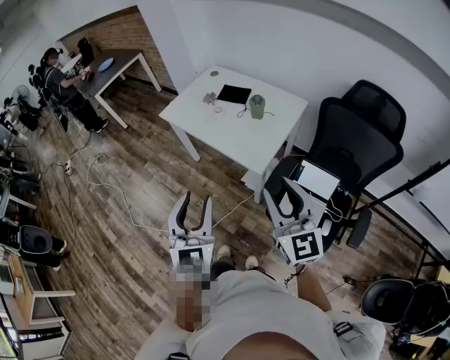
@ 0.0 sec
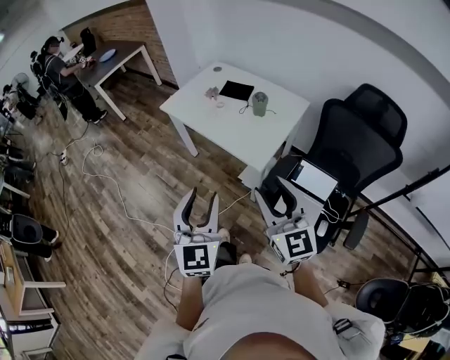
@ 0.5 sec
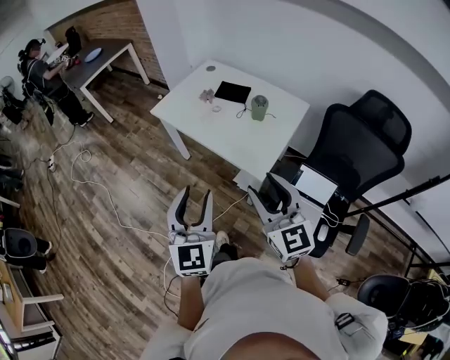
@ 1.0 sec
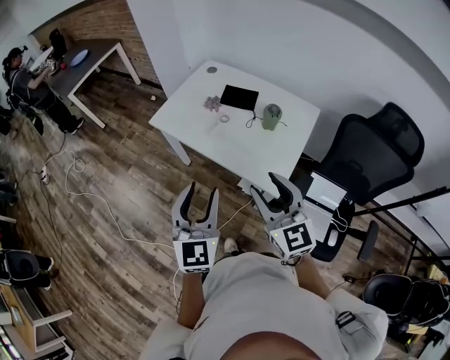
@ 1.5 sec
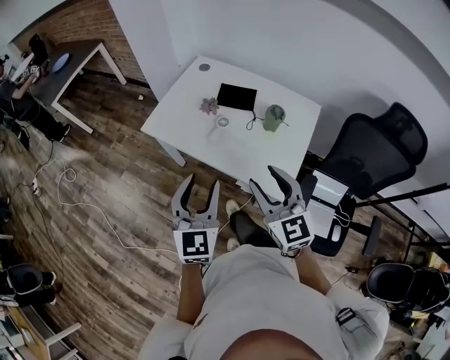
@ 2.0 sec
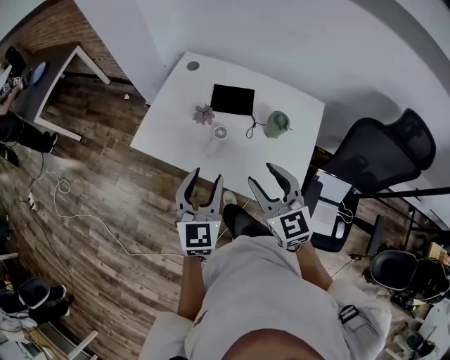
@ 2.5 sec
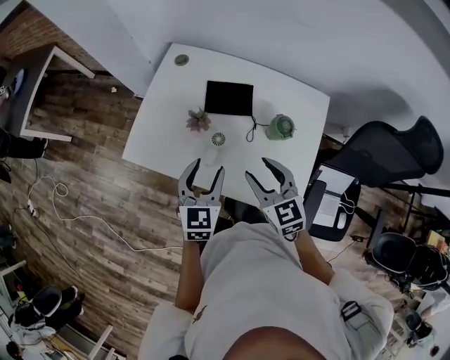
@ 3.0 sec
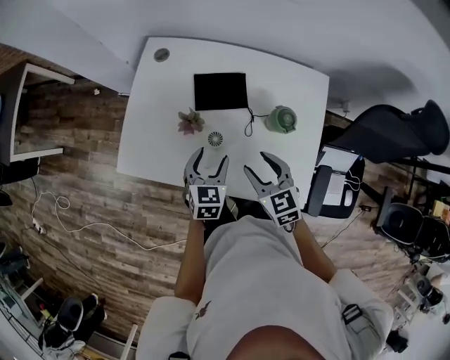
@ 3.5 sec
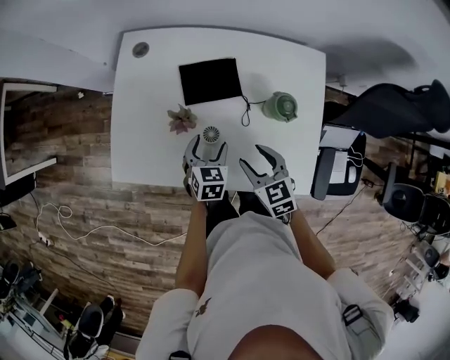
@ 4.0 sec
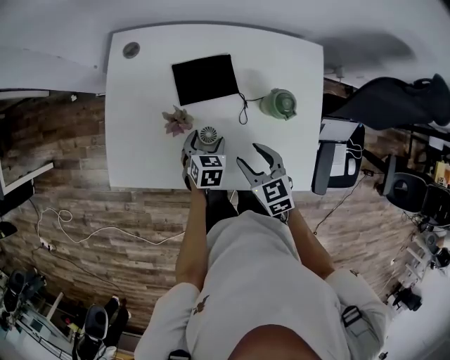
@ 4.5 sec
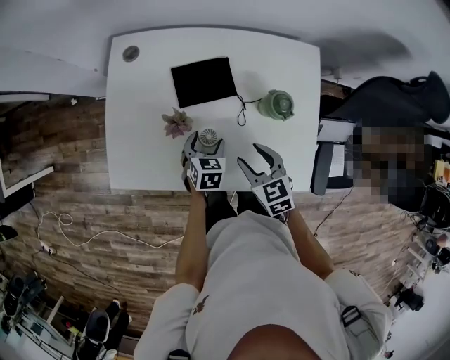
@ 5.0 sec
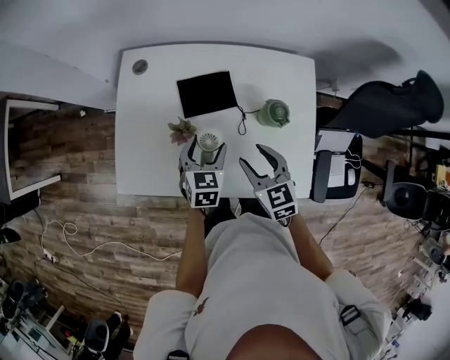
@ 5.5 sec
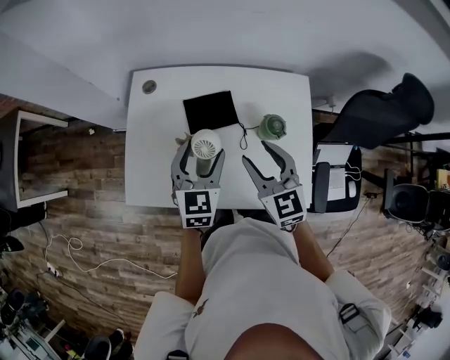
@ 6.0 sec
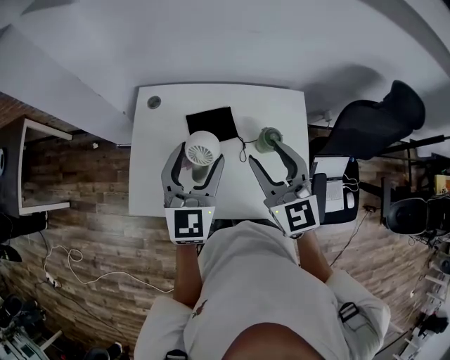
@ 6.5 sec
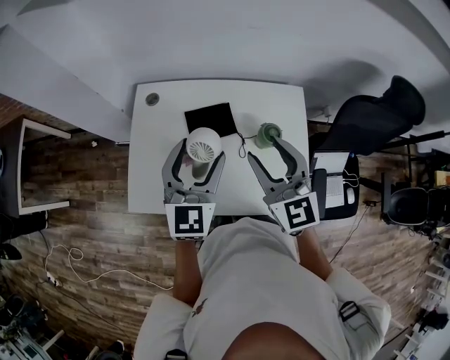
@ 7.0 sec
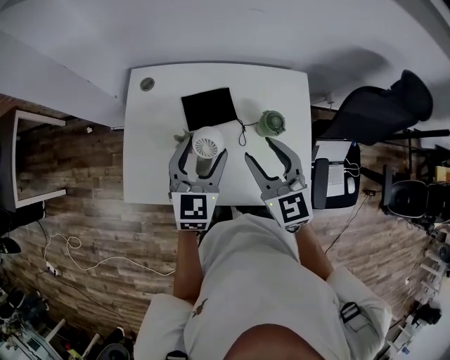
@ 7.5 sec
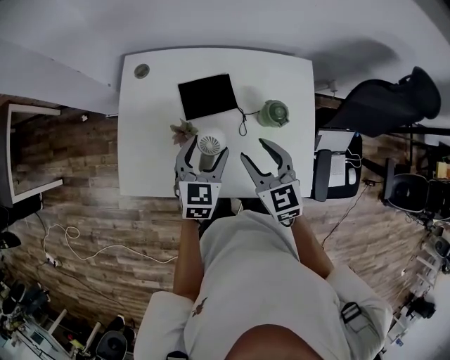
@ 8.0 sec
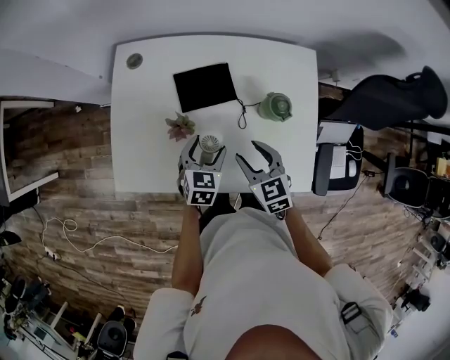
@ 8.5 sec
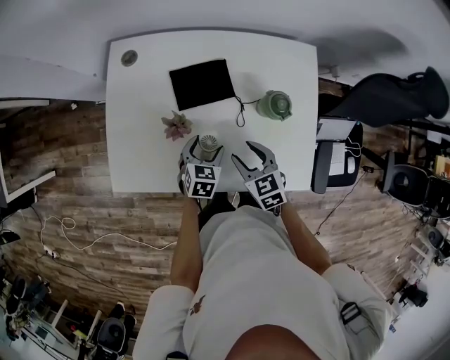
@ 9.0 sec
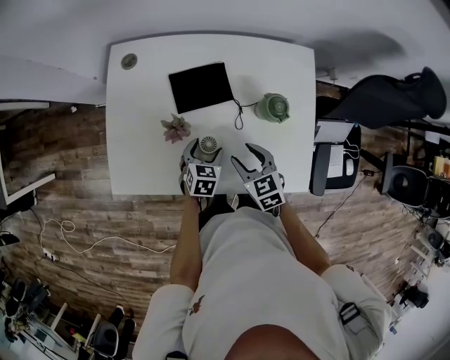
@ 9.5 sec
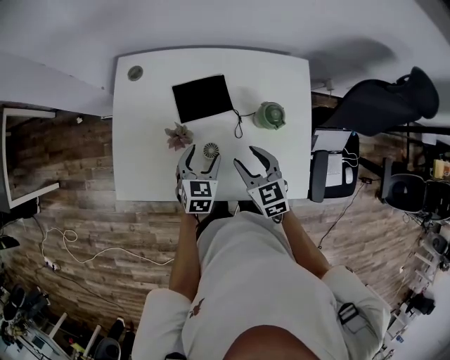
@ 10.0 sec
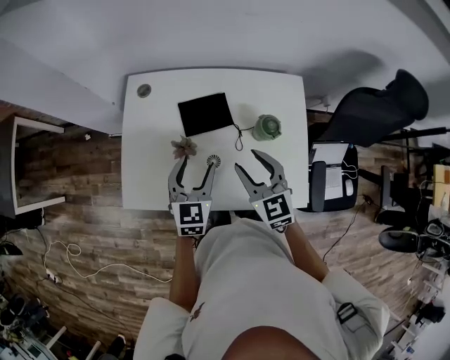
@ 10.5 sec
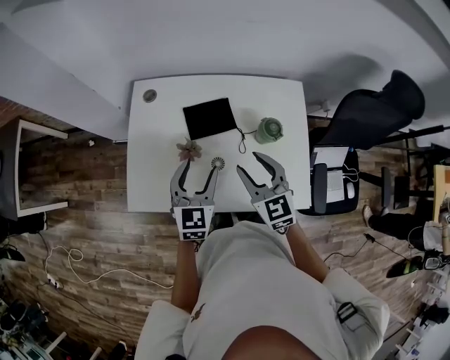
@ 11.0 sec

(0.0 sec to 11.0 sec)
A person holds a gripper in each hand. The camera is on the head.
0.0 sec - 2.0 sec: The left gripper goes some 30 cm forward, while the right gripper is displaced forward and to the left by approximately 35 cm.
2.0 sec - 3.5 sec: The two grippers go approximately 35 cm forward and downward. The left gripper tilts its fingers about 30 degrees downward, while the right gripper swivels some 30 degrees.
3.5 sec - 5.5 sec: The left gripper is displaced forward by about 5 cm, and goes downward and returns, about 15 cm each way.
5.5 sec - 7.5 sec: Both grippers travel together upward, about 15 cm. The left gripper swivels some 20 degrees.
7.5 sec - 9.0 sec: The grippers both shift downward by some 25 cm. The left gripper tilts its fingers roughly 30 degrees downward, while the right gripper rotates some 30 degrees.
9.0 sec - 11.0 sec: Both grippers travel together upward, about 20 cm. The left gripper turns by approximately 30 degrees. Meanwhile the right gripper turns by roughly 20 degrees.

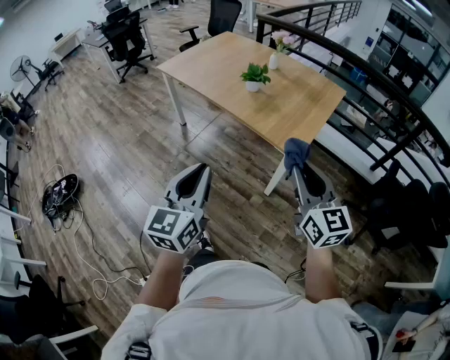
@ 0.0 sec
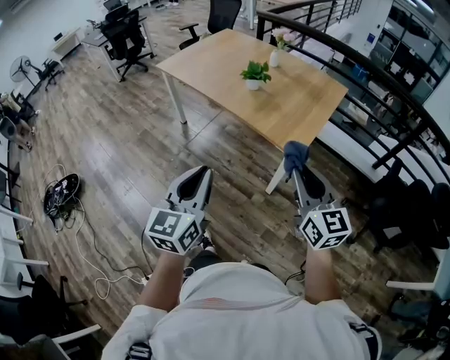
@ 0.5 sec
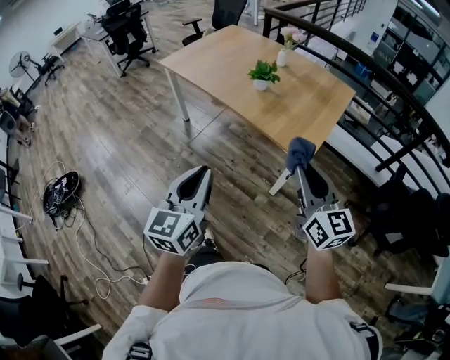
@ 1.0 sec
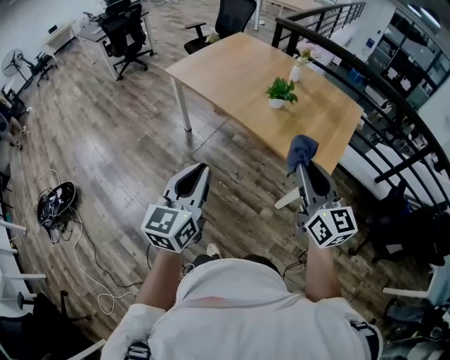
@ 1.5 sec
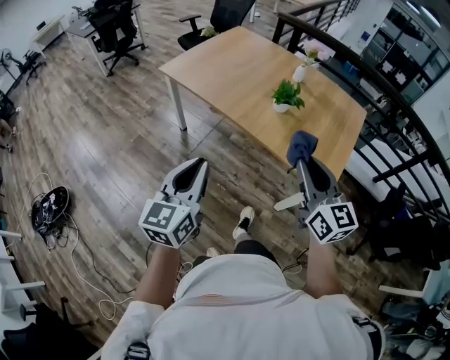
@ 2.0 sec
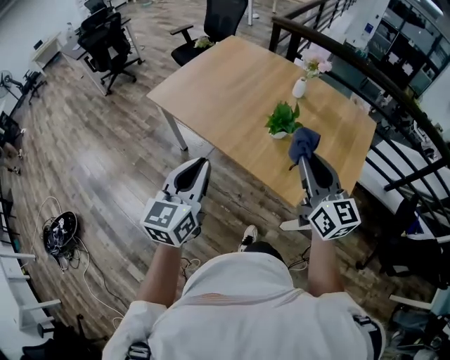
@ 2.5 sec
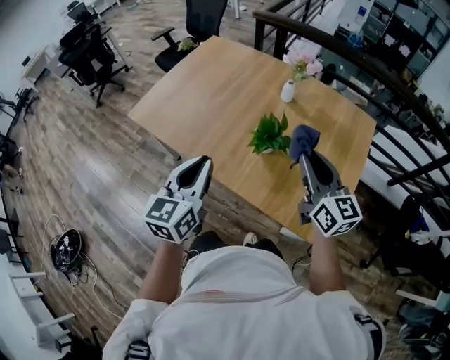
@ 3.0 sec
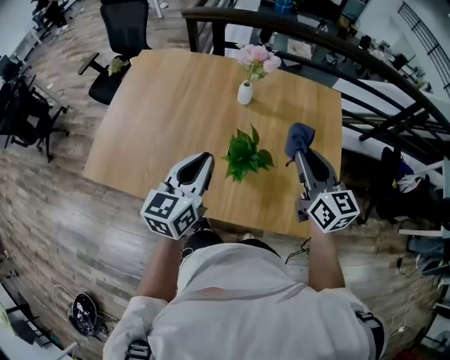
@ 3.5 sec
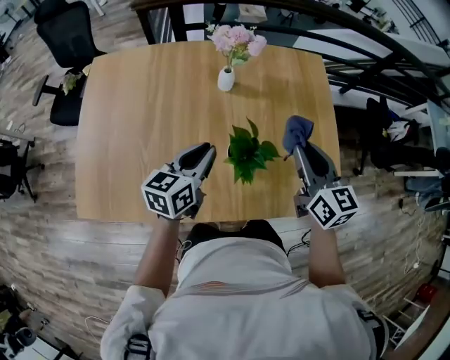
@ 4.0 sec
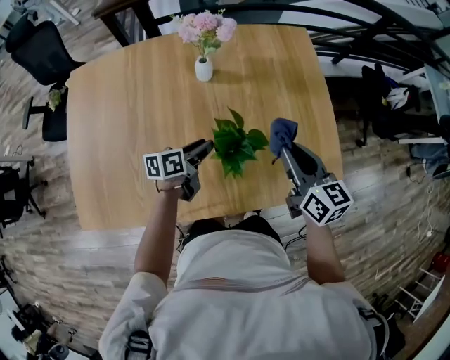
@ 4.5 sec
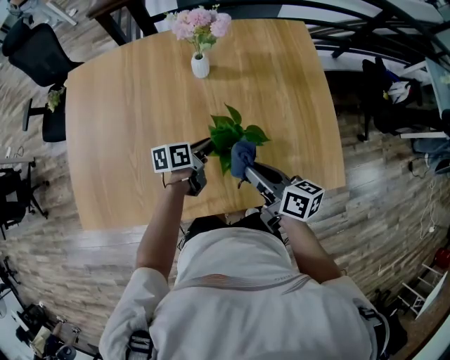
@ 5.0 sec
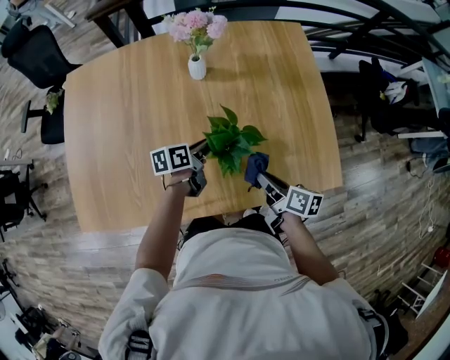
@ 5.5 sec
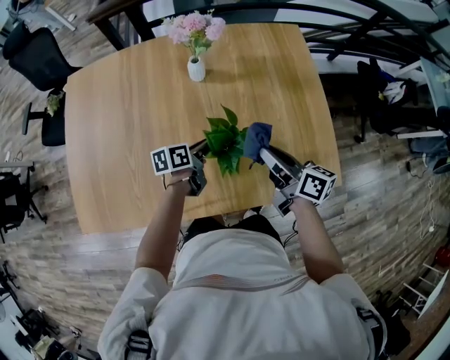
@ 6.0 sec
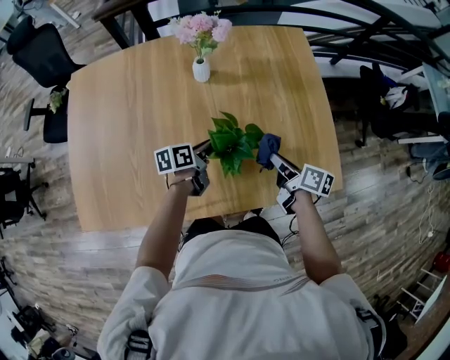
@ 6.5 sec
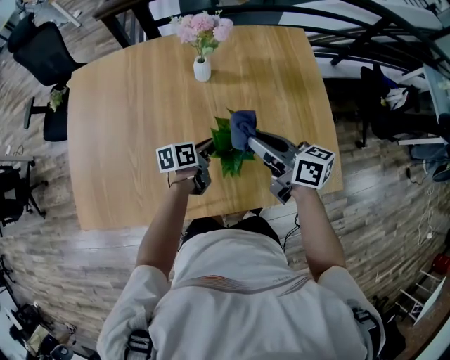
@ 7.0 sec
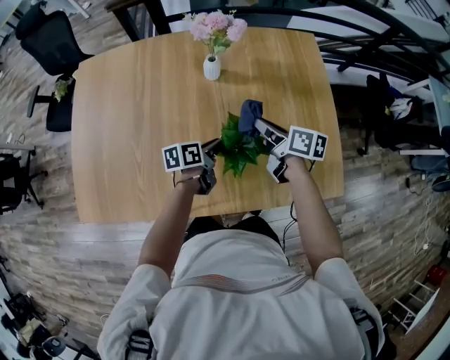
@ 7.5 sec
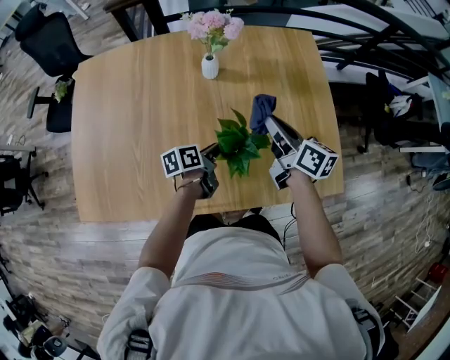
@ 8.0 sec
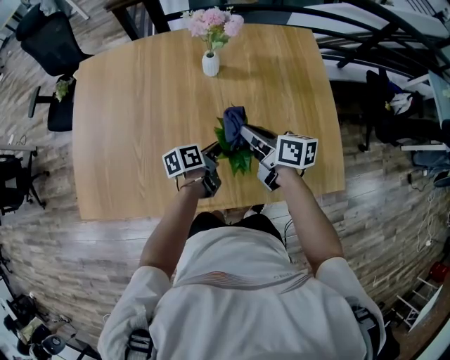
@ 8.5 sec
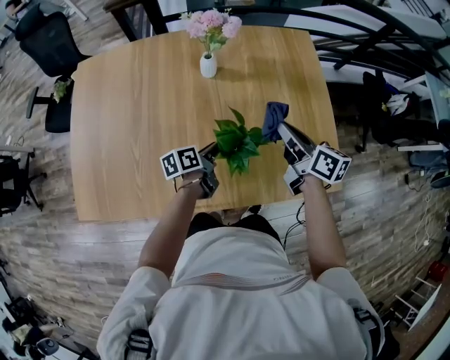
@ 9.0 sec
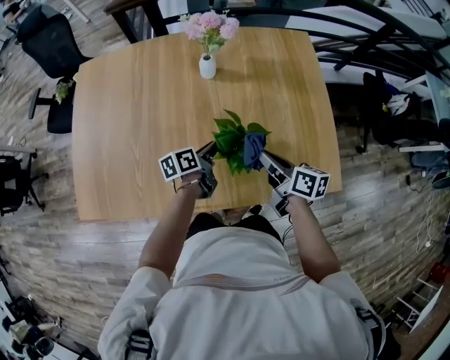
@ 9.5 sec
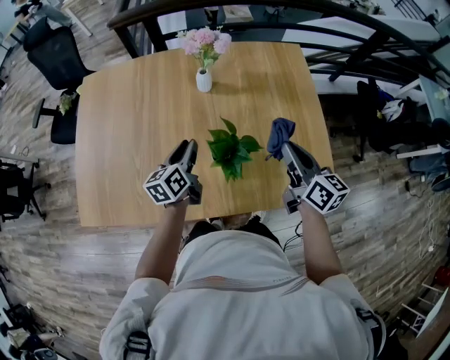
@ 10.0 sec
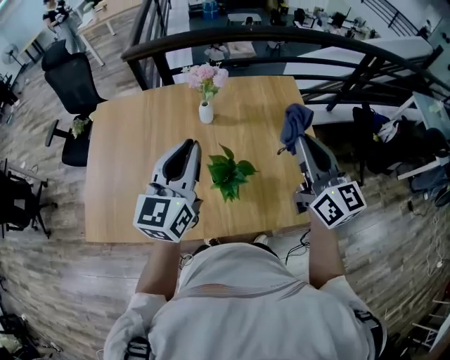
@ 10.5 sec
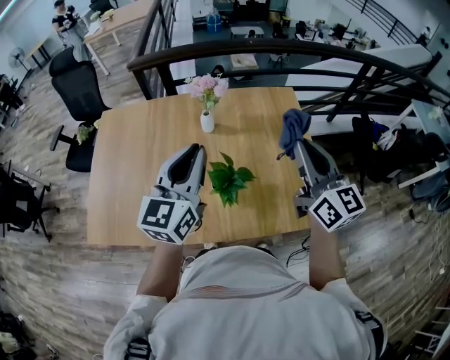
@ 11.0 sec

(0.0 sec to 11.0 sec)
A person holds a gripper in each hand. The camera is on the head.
0.0 sec - 2.0 sec: Both grippers move forward and to the left, some 30 cm.
2.0 sec - 3.5 sec: The two grippers travel together, about 50 cm. The left gripper rotates some 30 degrees. Meanwhile the right gripper rotates about 30 degrees.
3.5 sec - 5.5 sec: The two grippers go about 25 cm downward. The right gripper rolls clockwise, seen from behind, by roughly 50 degrees. The left gripper rotates roughly 60 degrees.
5.5 sec - 7.5 sec: The right gripper is displaced forward by some 15 cm.
7.5 sec - 9.0 sec: The right gripper moves upward and to the right, about 10 cm.
9.0 sec - 11.0 sec: The right gripper heads upward, covering approximately 25 cm, and turns by about 40 degrees, while the left gripper moves upward, roughly 40 cm, and twists roughly 60 degrees clockwise, seen from behind.

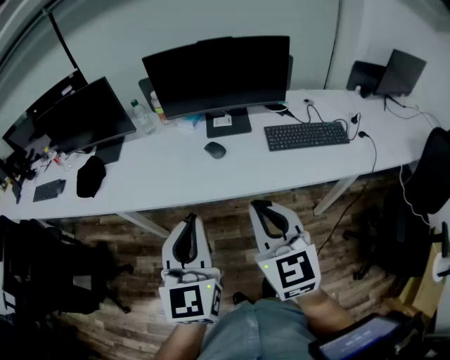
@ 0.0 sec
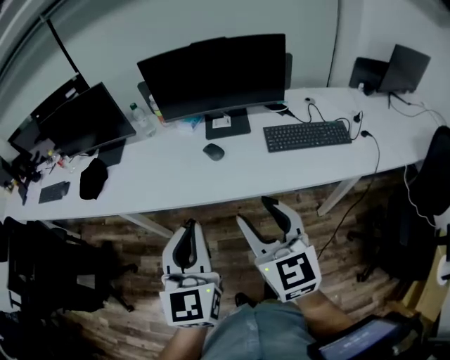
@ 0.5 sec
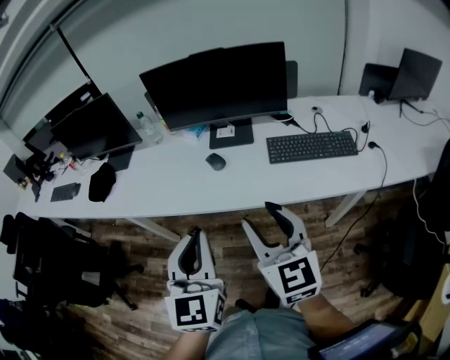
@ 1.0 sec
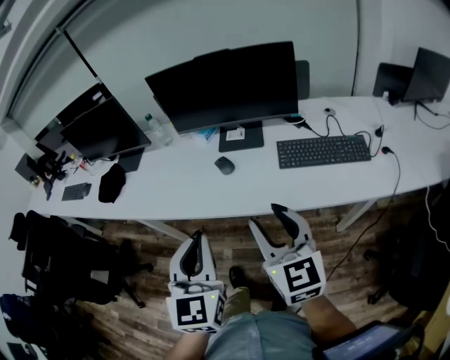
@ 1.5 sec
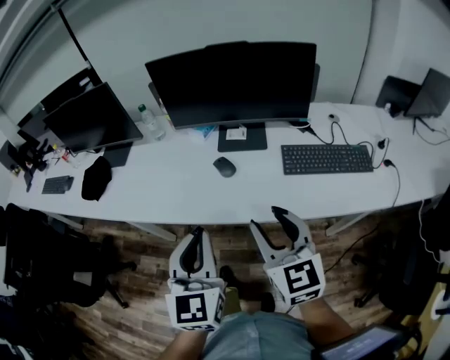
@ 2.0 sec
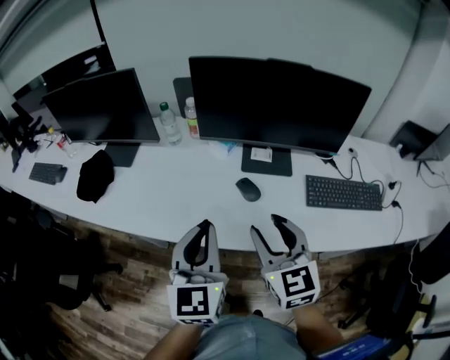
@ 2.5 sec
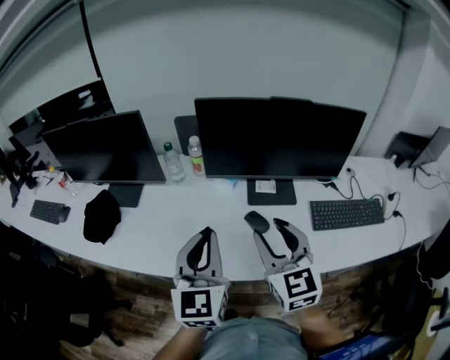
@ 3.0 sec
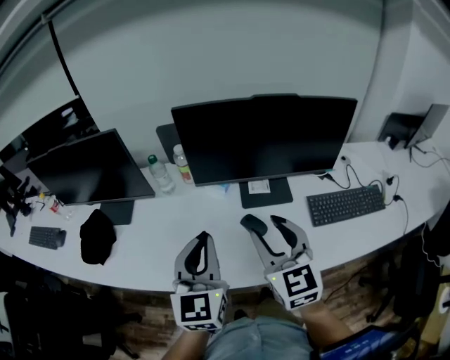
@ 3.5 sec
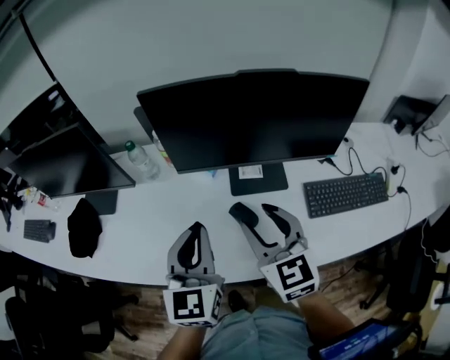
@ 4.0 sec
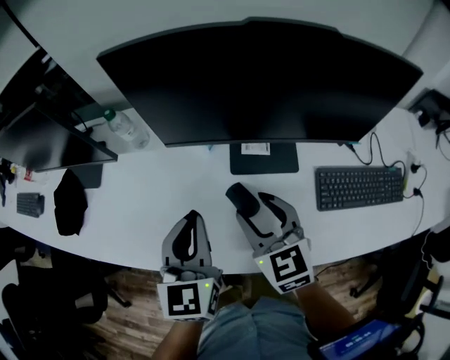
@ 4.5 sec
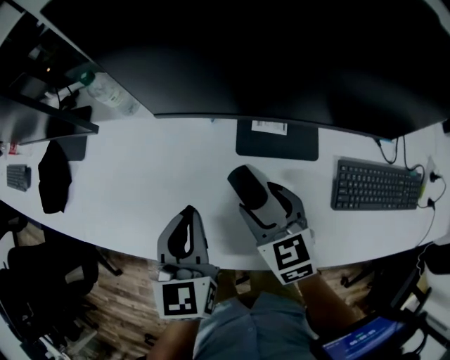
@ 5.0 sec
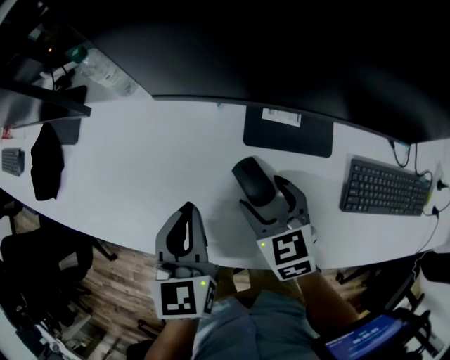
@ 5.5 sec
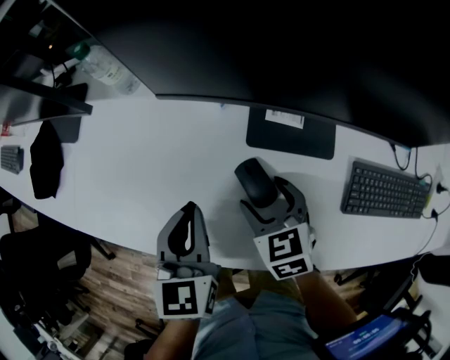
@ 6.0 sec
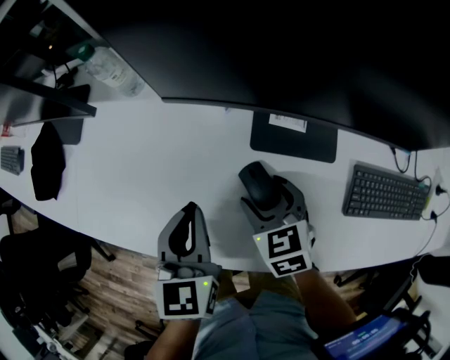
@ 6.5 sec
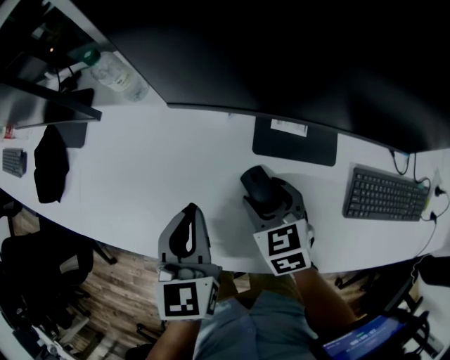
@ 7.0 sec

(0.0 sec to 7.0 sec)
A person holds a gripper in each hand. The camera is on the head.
0.0 sec - 2.0 sec: The right gripper shifts about 10 cm forward and to the right, and opens. Meanwhile the left gripper is displaced forward by about 10 cm.
2.0 sec - 3.5 sec: The grippers both shift forward and to the left by some 20 cm.
3.5 sec - 5.0 sec: The right gripper is displaced downward by roughly 20 cm, and changes its angle by some 30 degrees. The left gripper moves downward and forward, some 20 cm, and changes its angle by some 30 degrees.
5.0 sec - 7.0 sec: The right gripper moves downward, about 5 cm.
